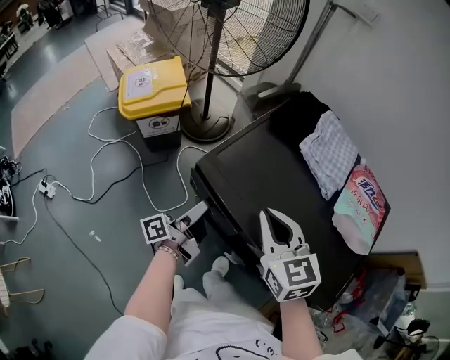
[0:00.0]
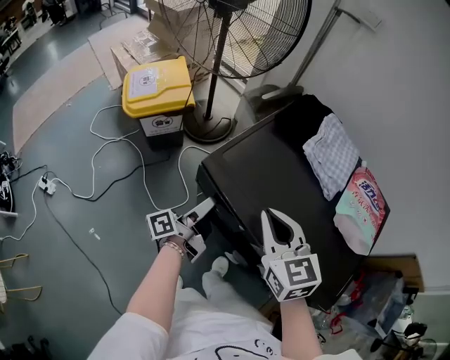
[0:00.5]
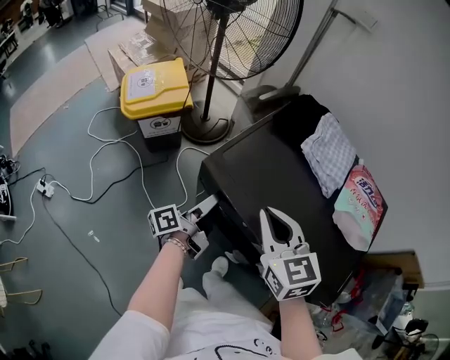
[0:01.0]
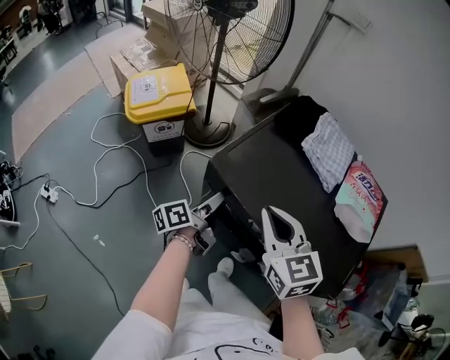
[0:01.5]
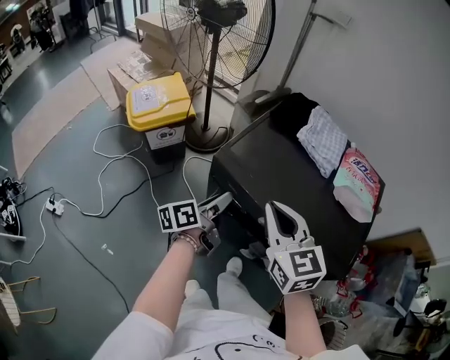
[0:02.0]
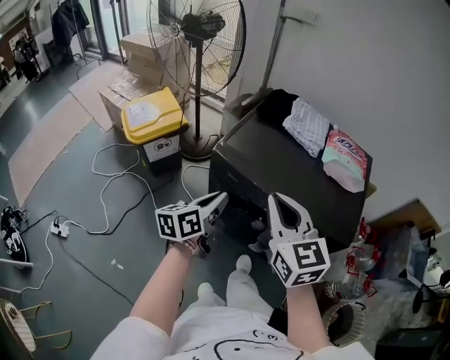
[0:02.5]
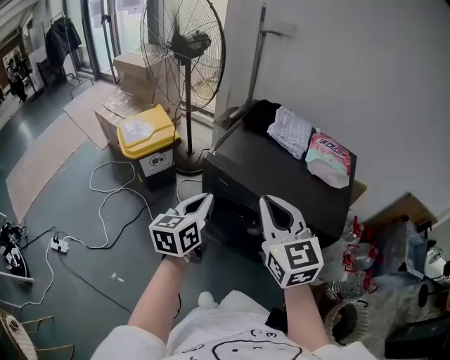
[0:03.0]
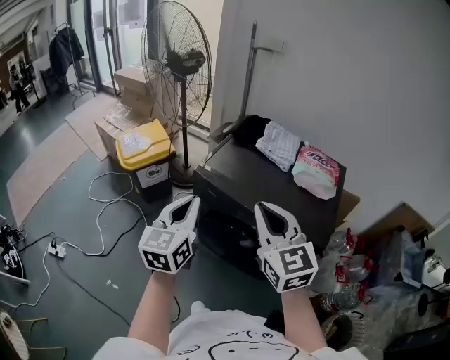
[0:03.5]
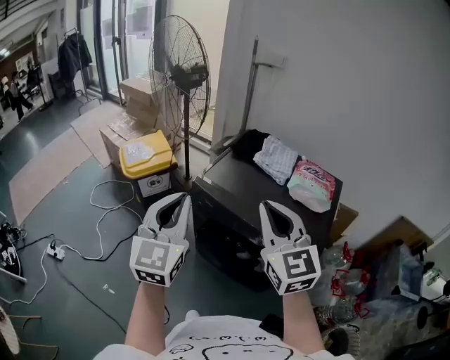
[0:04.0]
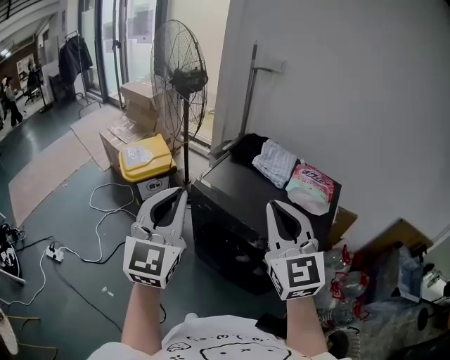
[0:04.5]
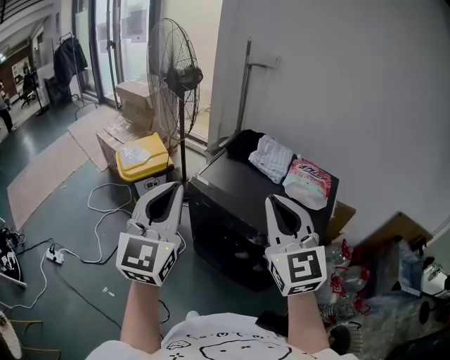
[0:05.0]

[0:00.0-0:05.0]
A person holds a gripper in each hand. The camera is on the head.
0:00.0 to 0:02.5: The left gripper heads upward and backward, covering some 15 cm, rolls clockwise, seen from behind, by roughly 40 degrees, and closes; the right gripper is displaced backward and upward by about 20 cm.
0:02.5 to 0:05.0: The left gripper travels upward by some 25 cm, and twists about 50 degrees clockwise, seen from behind. The right gripper is displaced upward, to the right and backward by roughly 20 cm, and changes its angle by about 20 degrees.

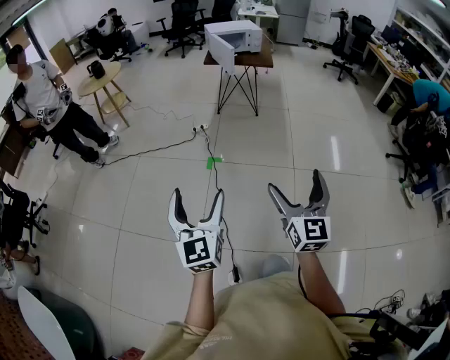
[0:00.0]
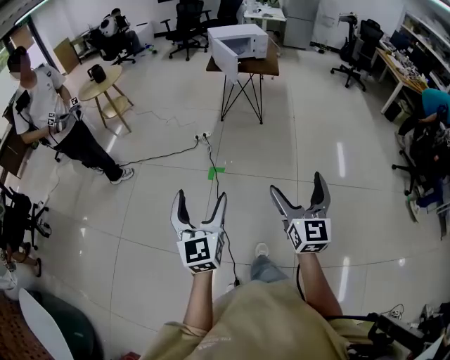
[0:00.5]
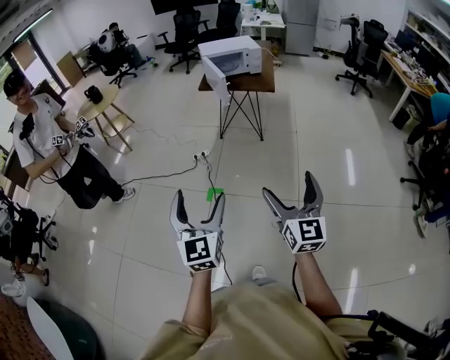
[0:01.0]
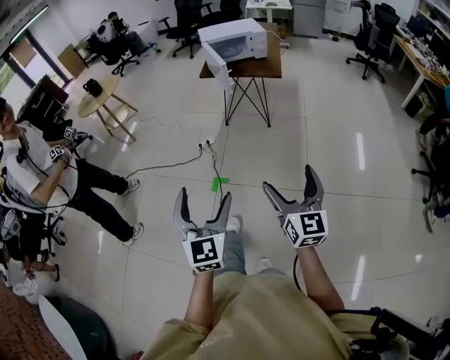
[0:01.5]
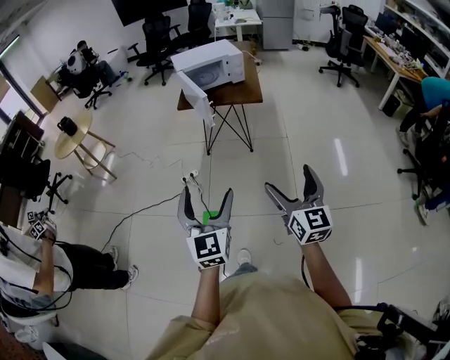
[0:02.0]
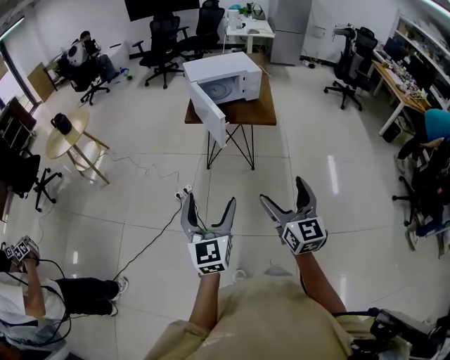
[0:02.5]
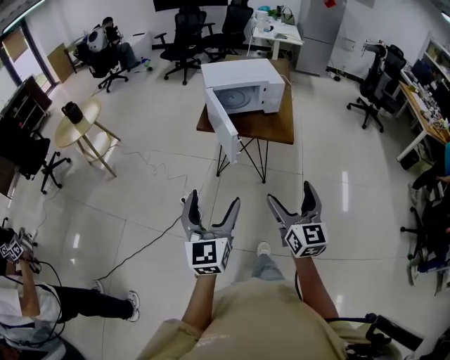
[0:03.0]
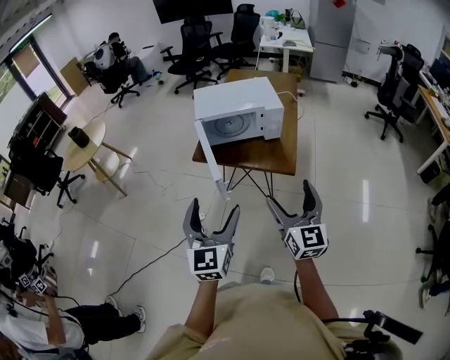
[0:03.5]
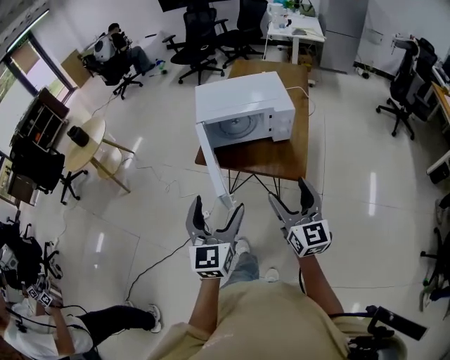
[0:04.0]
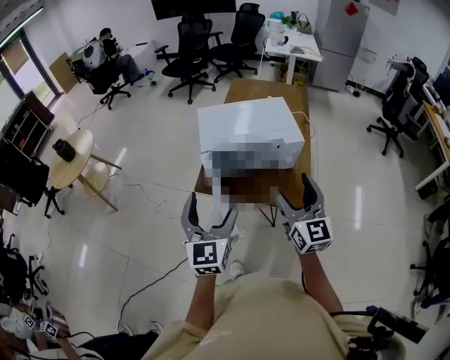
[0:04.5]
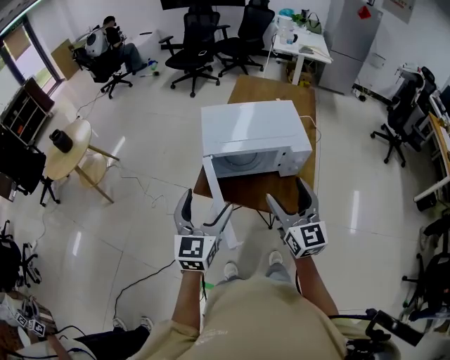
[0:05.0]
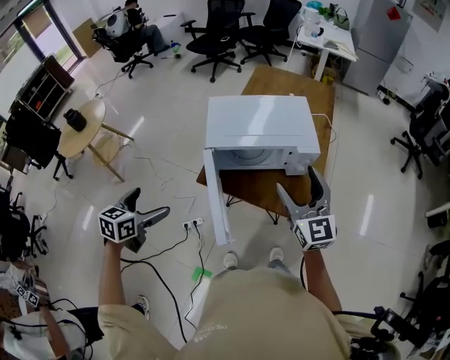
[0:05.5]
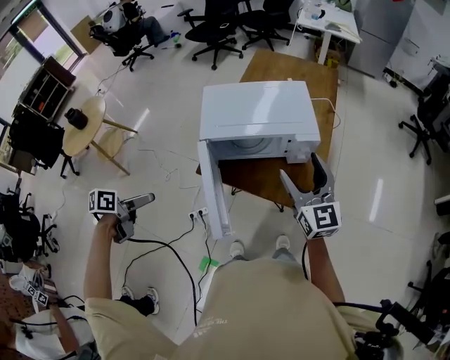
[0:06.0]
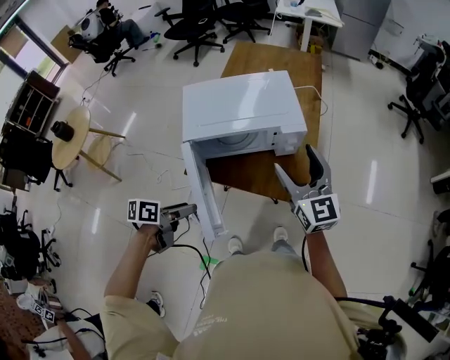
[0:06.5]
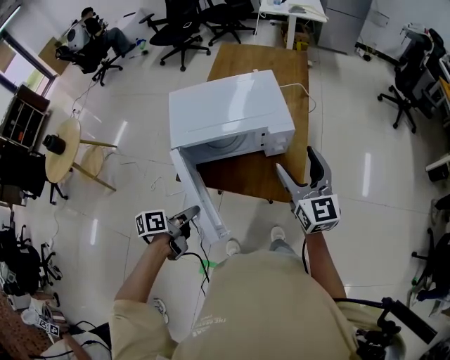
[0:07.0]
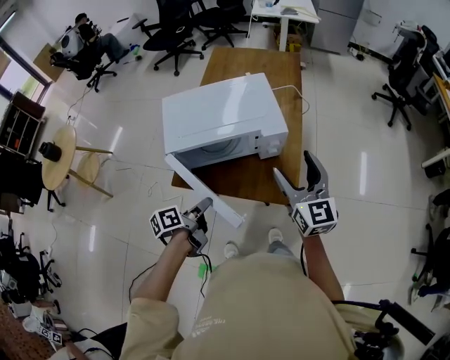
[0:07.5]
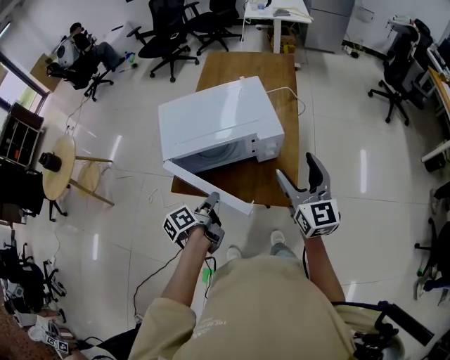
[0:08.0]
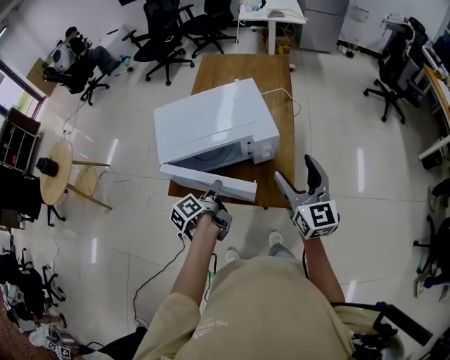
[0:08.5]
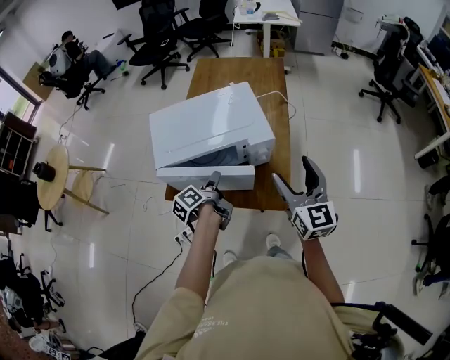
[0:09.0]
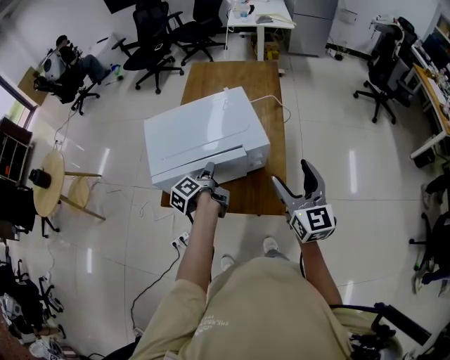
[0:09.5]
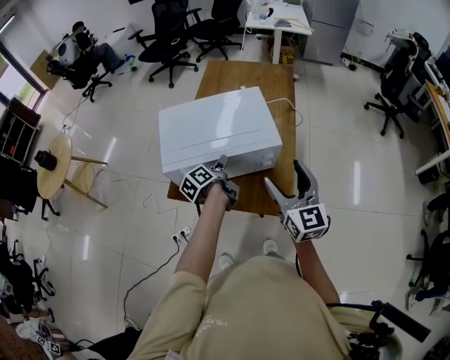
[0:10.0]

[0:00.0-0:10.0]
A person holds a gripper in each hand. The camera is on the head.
0:00.0 to 0:02.0: Both grippers are carried forward and to the right, about 50 cm.
0:02.0 to 0:04.0: Both grippers are carried forward, approximately 60 cm.
0:04.0 to 0:06.0: The right gripper travels forward by roughly 30 cm, while the left gripper travels forward and to the left by roughly 35 cm, and tilts its fingers approximately 40 degrees downward.
0:06.0 to 0:08.0: The left gripper travels to the right and forward by some 25 cm, rotates approximately 30 degrees, and closes up. Meanwhile the right gripper goes roughly 10 cm to the right.
0:08.0 to 0:10.0: The left gripper heads forward, covering about 15 cm.

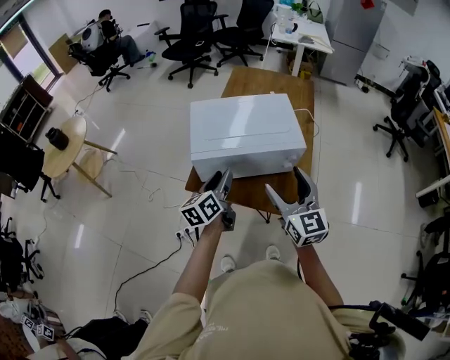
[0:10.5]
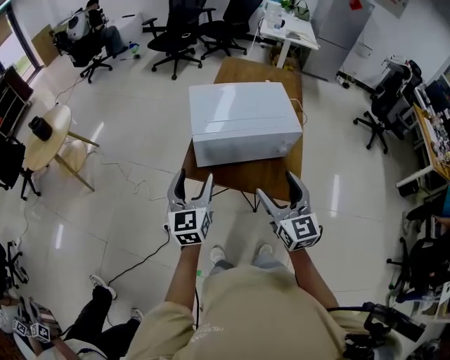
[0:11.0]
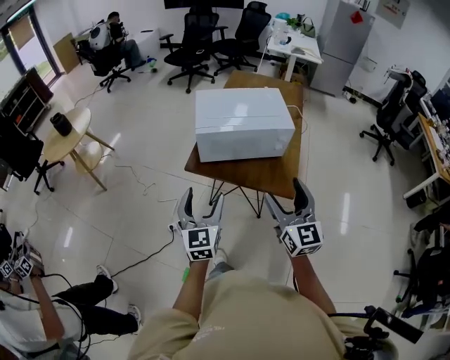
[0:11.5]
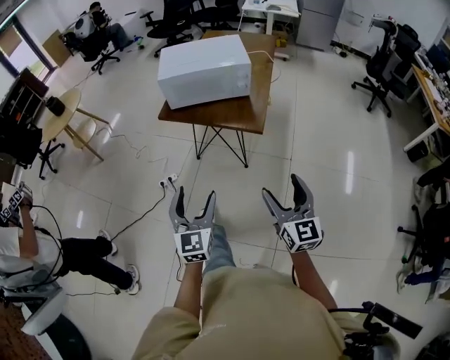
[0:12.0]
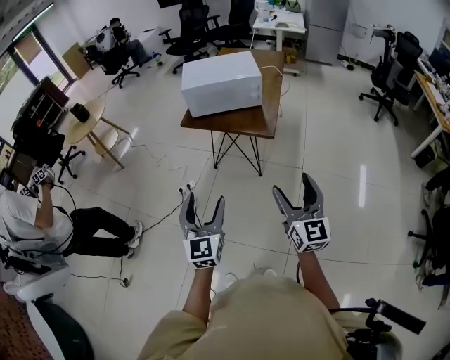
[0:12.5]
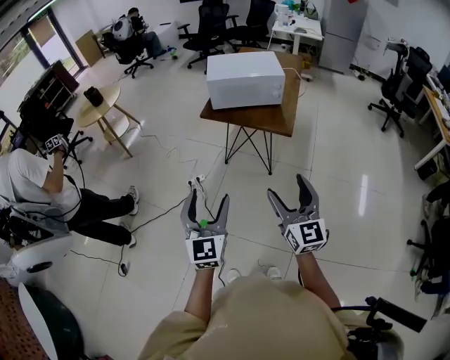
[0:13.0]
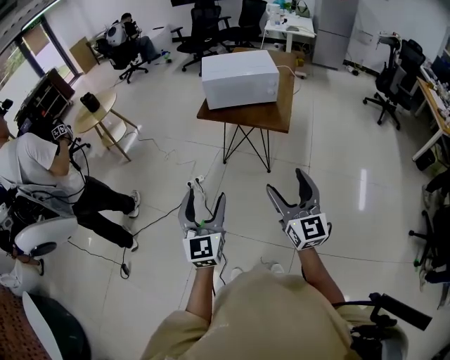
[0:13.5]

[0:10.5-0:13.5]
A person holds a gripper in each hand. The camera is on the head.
0:10.5 to 0:12.0: The pair of grippers is taken backward, roughly 40 cm. The left gripper rolls clockwise, seen from behind, by some 50 degrees.
0:12.0 to 0:13.5: The right gripper moves backward, to the left and upward, approximately 25 cm, while the left gripper heads backward, upward and to the left, covering roughly 25 cm.

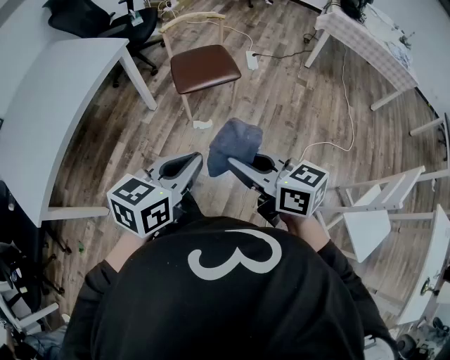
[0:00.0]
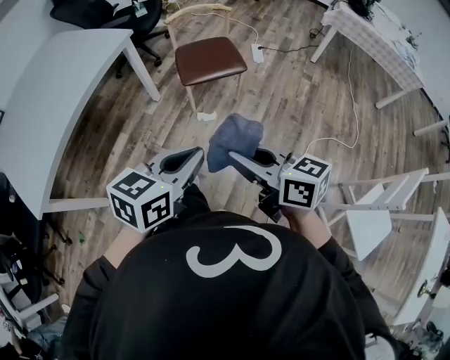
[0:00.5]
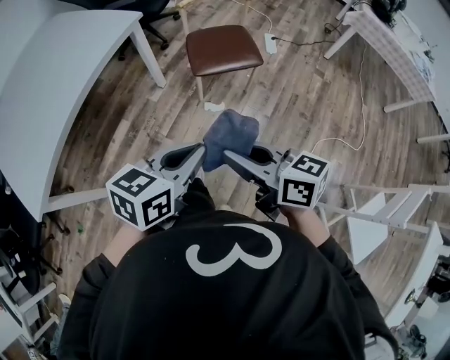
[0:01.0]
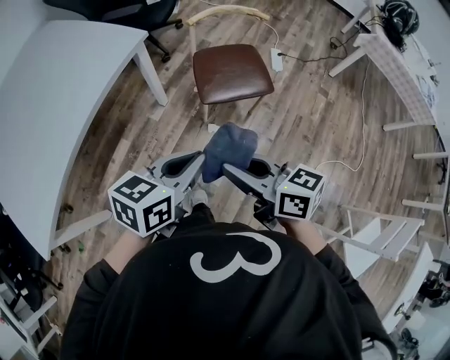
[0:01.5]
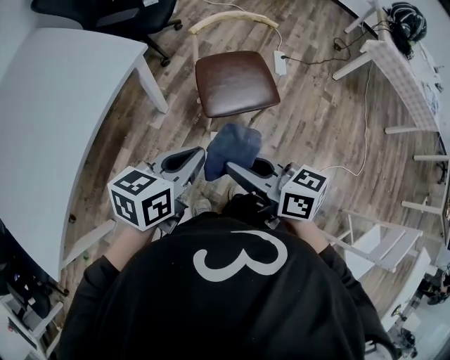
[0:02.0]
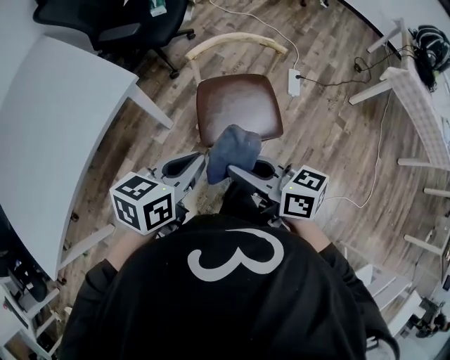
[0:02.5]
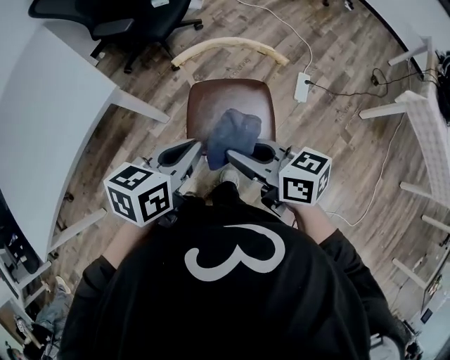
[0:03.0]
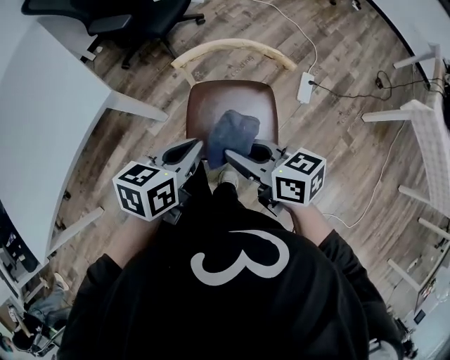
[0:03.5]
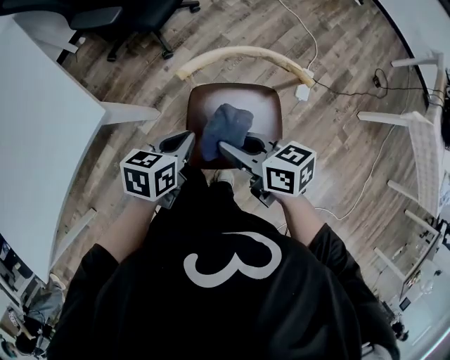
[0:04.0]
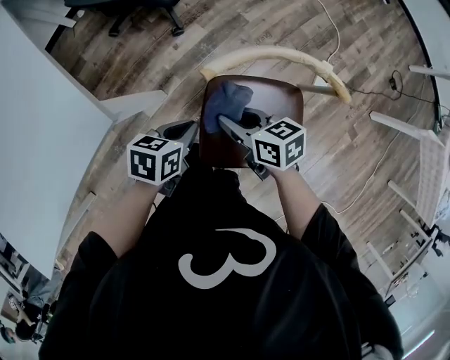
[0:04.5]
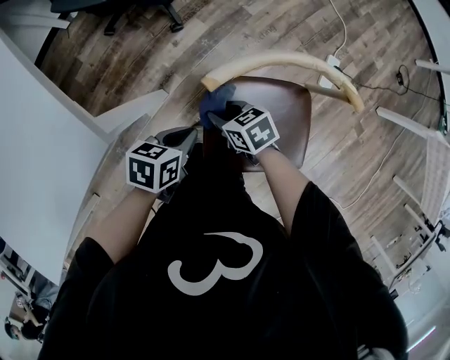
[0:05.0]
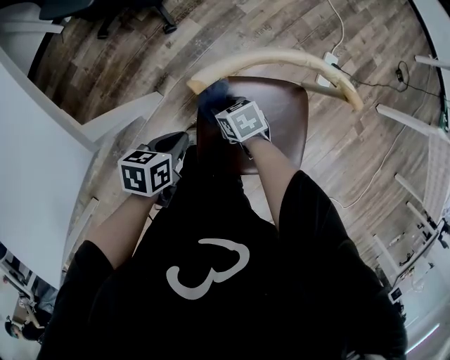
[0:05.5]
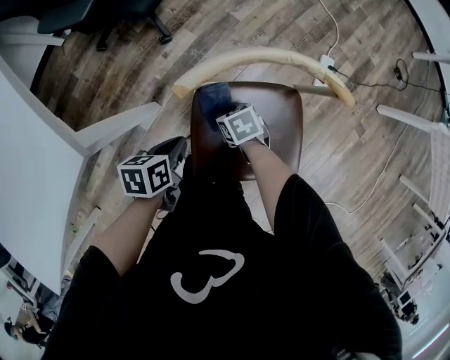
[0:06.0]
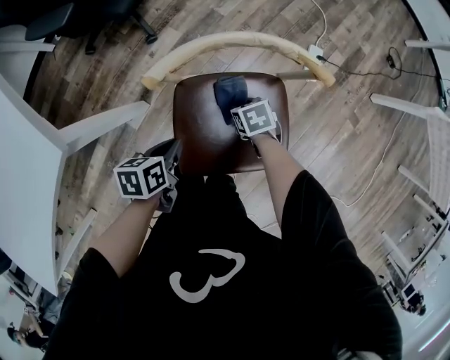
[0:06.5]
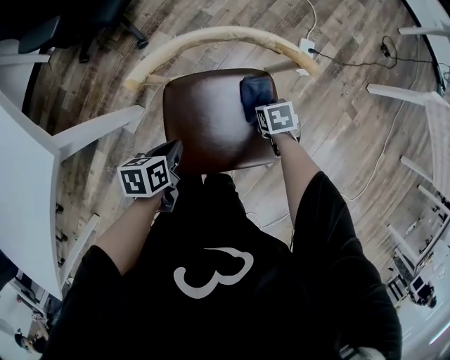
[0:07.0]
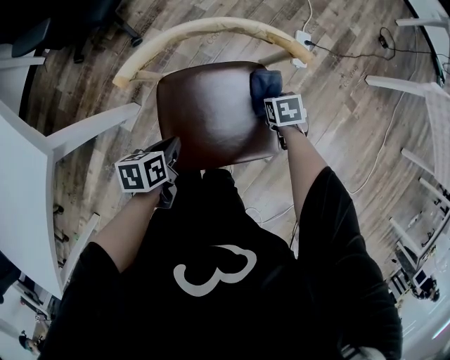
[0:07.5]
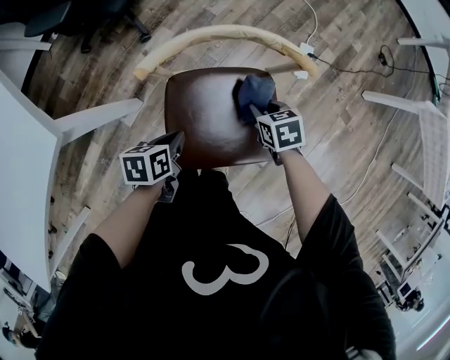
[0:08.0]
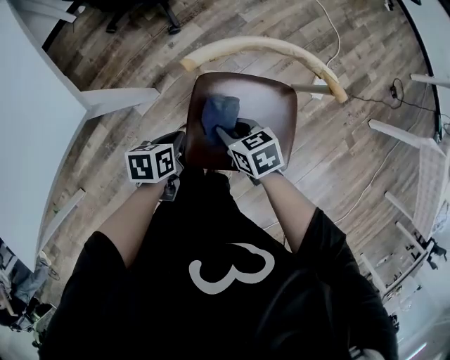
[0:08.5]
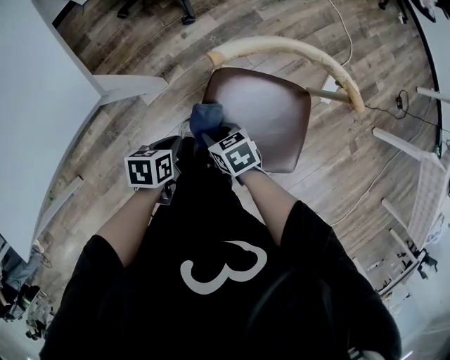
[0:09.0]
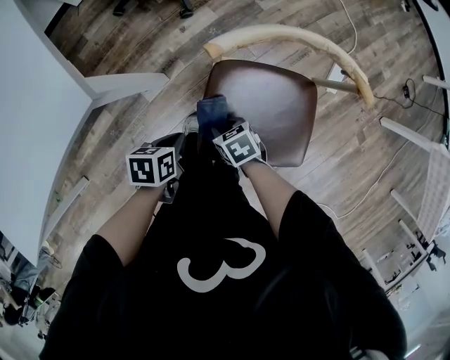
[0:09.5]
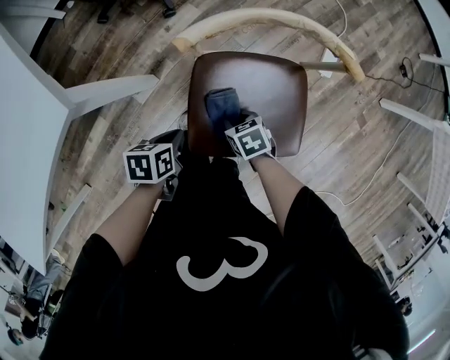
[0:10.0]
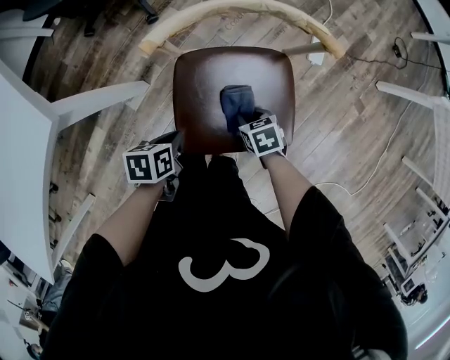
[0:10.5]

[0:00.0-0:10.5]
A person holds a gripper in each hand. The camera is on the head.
0:00.0 to 0:02.0: Both grippers travel together forward and to the left, about 35 cm.
0:02.0 to 0:04.0: The right gripper travels forward by approximately 35 cm, and turns by some 20 degrees, while the left gripper shifts approximately 40 cm forward and downward, and rotates about 20 degrees.
0:04.0 to 0:06.5: The right gripper shifts approximately 30 cm downward, and tilts its fingers roughly 40 degrees downward; the left gripper travels downward by some 15 cm.
0:06.5 to 0:08.5: The right gripper ends up some 15 cm from where it was, and swivels roughly 20 degrees.
0:08.5 to 0:10.5: The left gripper changes place by approximately 5 cm, while the right gripper is displaced downward by some 10 cm.
